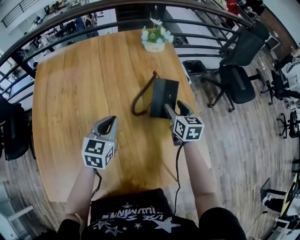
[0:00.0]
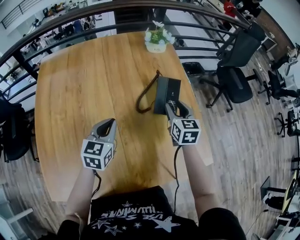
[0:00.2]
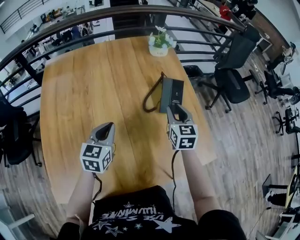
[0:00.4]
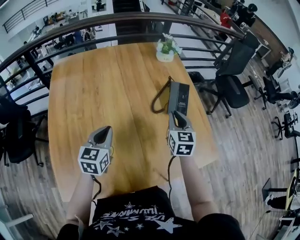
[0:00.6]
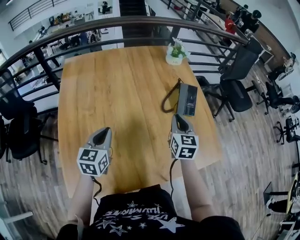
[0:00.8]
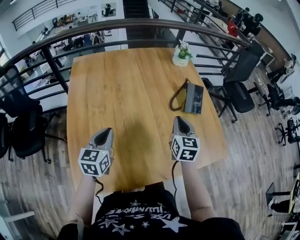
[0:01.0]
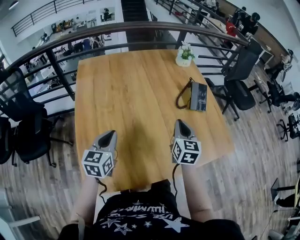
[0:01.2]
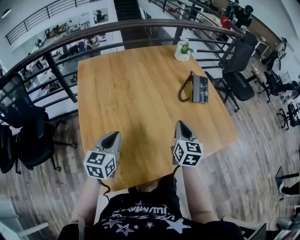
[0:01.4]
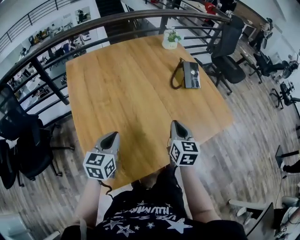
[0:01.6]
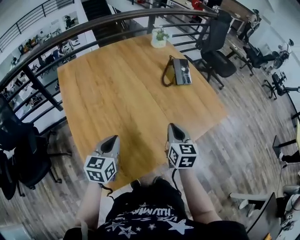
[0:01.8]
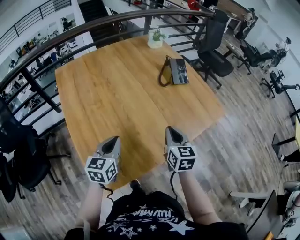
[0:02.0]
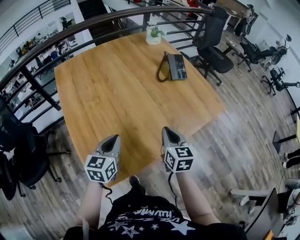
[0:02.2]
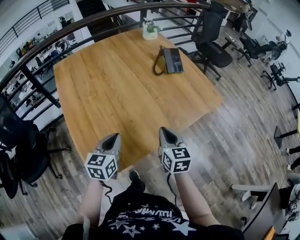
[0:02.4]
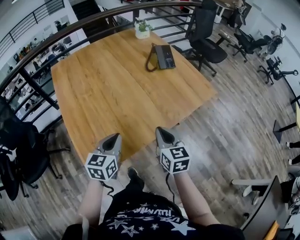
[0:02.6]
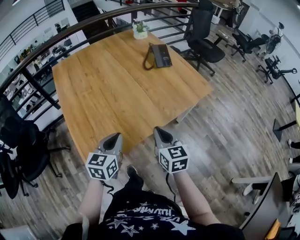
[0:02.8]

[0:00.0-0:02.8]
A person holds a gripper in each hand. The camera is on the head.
0:00.0 to 0:01.4: The left gripper heads to the left and backward, covering approximately 35 cm, while the right gripper moves backward and to the left, about 35 cm, and closes.
0:01.4 to 0:02.8: The left gripper shifts some 20 cm to the right and backward, while the right gripper heads backward, covering roughly 20 cm.

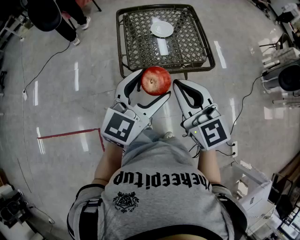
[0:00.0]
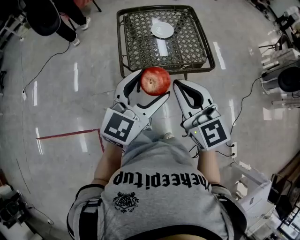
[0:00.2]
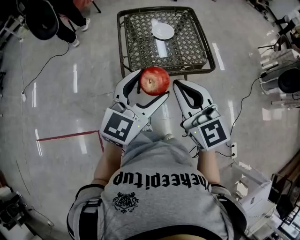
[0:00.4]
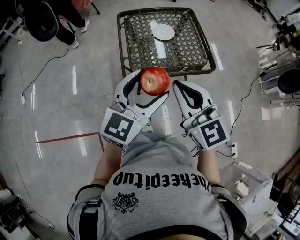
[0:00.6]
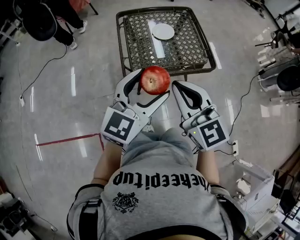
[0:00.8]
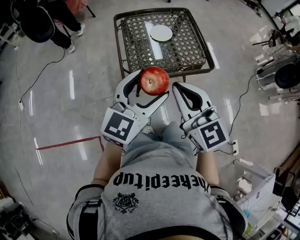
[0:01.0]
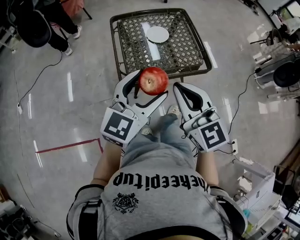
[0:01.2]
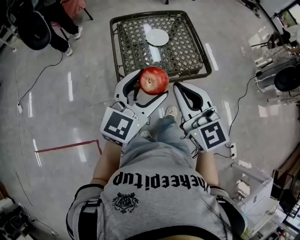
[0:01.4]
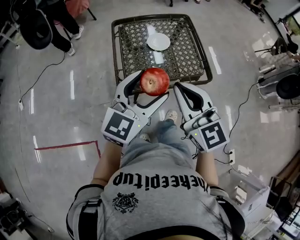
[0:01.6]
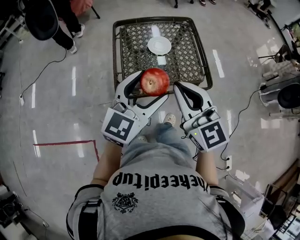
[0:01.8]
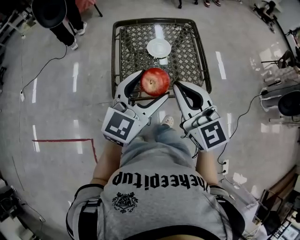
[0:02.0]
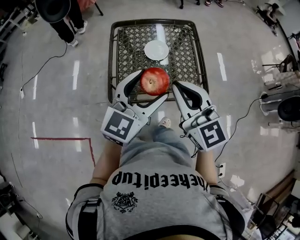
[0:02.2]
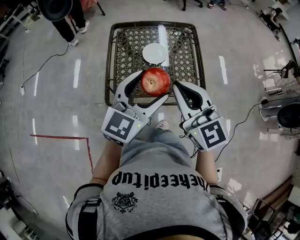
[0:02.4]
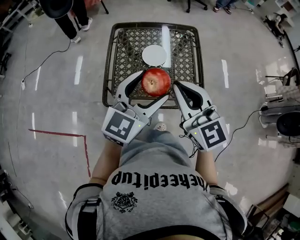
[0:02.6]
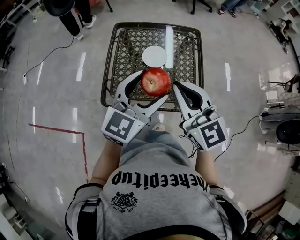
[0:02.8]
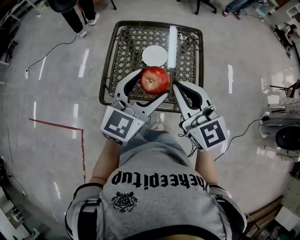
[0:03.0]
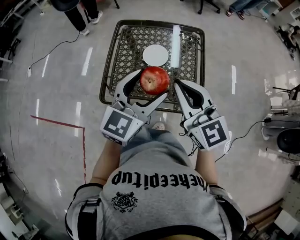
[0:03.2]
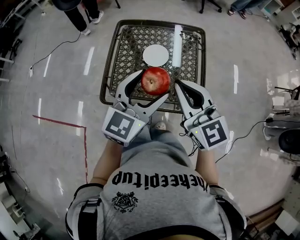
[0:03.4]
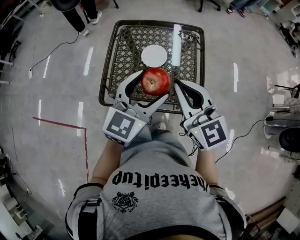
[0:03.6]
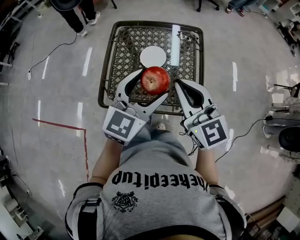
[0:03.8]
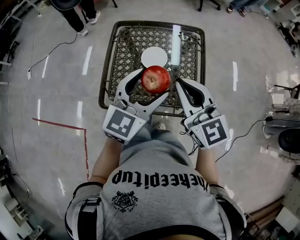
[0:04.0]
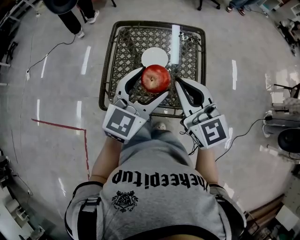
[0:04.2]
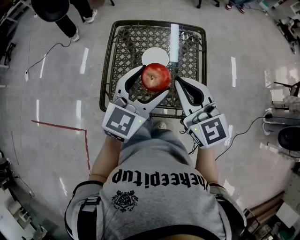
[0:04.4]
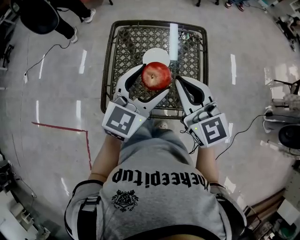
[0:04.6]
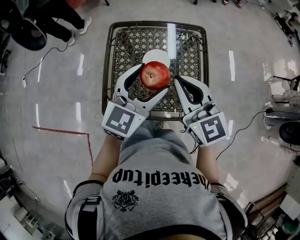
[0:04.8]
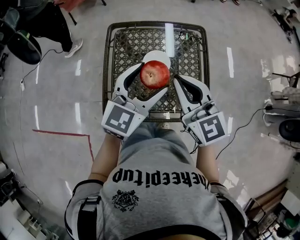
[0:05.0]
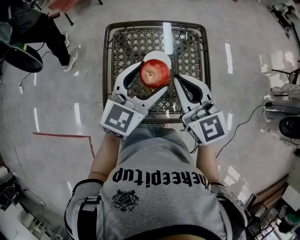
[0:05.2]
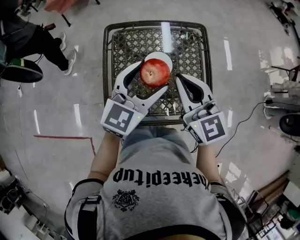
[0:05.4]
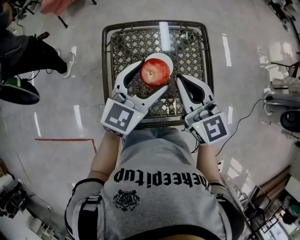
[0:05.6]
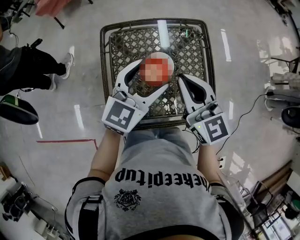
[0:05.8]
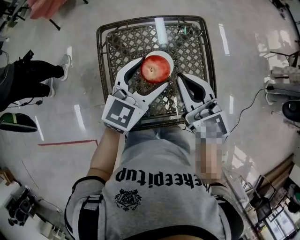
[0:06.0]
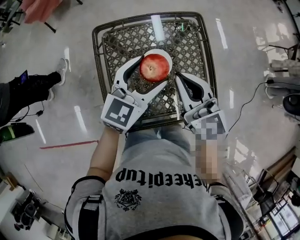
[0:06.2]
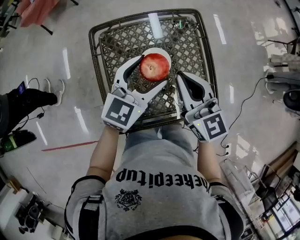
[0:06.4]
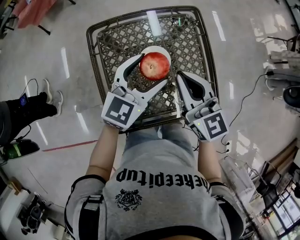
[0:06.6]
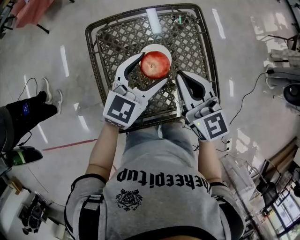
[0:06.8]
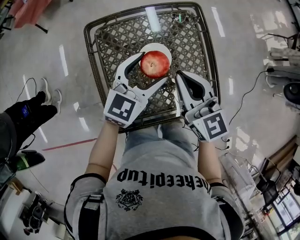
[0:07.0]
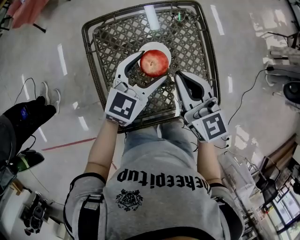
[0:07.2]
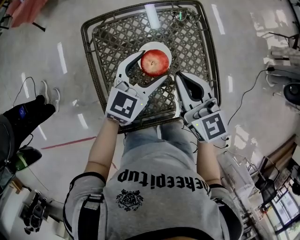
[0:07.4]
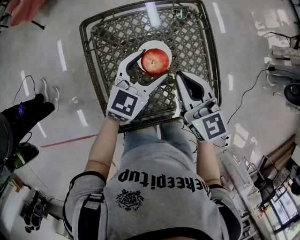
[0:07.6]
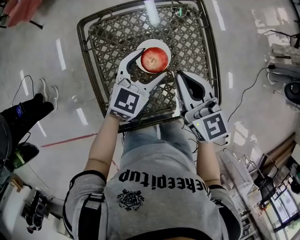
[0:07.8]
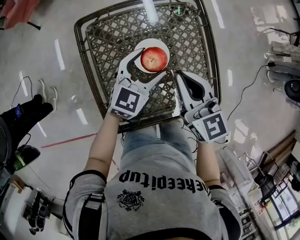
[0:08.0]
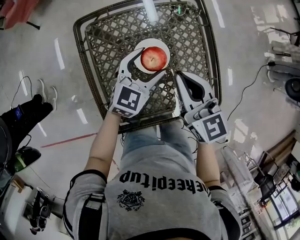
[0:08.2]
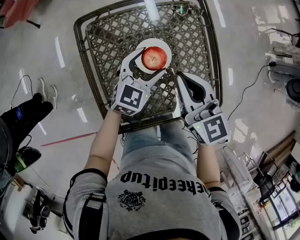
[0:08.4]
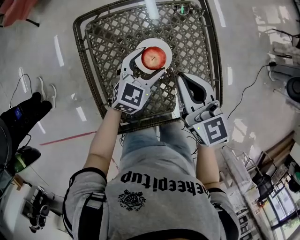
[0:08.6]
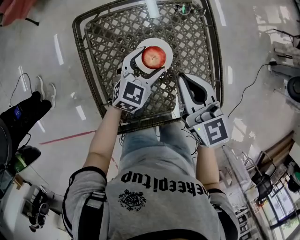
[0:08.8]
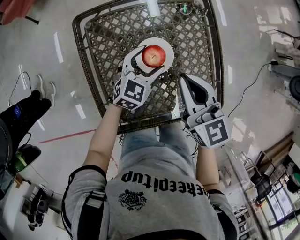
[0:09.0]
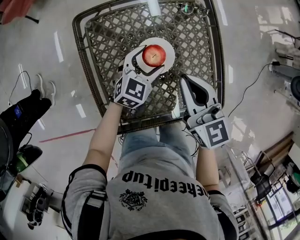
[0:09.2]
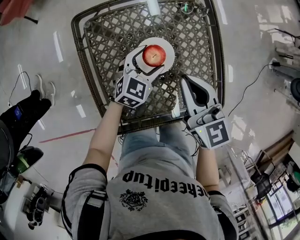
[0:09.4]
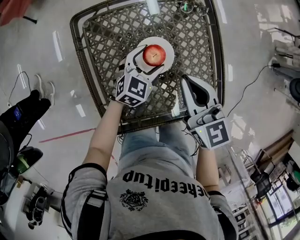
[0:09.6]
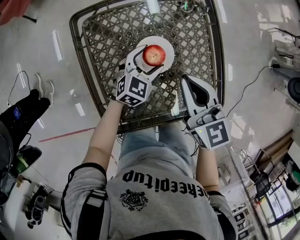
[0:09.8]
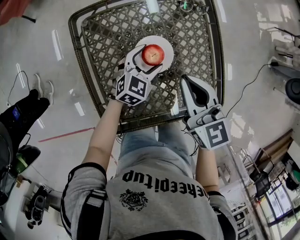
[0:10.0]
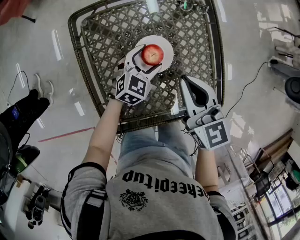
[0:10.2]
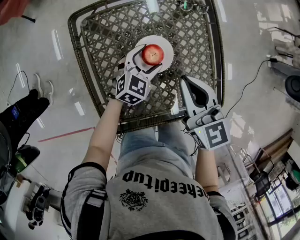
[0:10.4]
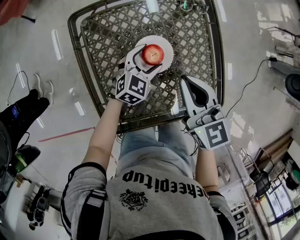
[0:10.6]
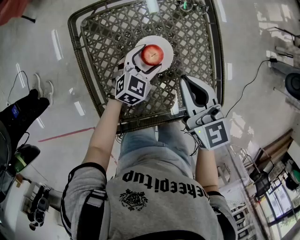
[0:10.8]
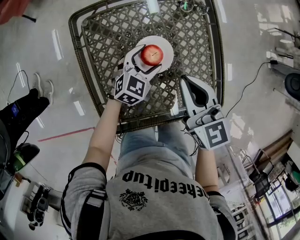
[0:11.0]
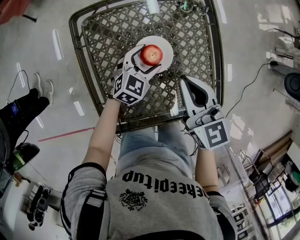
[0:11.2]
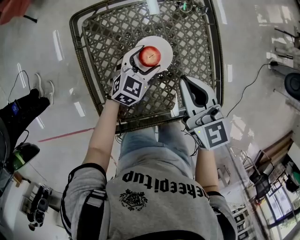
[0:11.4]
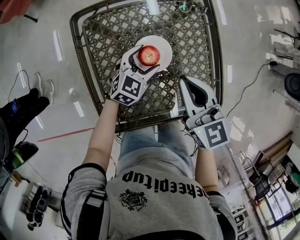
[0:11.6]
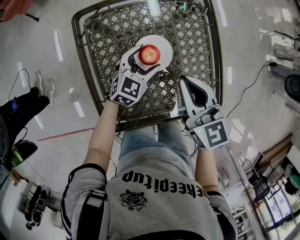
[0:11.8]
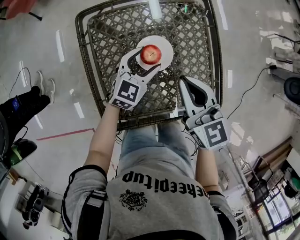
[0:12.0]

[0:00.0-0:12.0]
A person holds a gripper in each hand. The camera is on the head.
0:00.0 to 0:01.6: The two grippers go approximately 10 cm forward.
0:01.6 to 0:03.0: The two grippers go roughly 20 cm forward and to the right.
0:03.0 to 0:04.4: Both grippers travel together forward, some 5 cm.
0:04.4 to 0:06.0: Both grippers travel together forward and to the left, some 15 cm.
0:06.0 to 0:07.6: The two grippers go about 10 cm downward.
0:07.6 to 0:09.0: The left gripper goes some 10 cm downward.
0:09.0 to 0:10.4: There are only small adjustments of the grippers.
0:10.4 to 0:12.0: The left gripper goes approximately 5 cm upward.

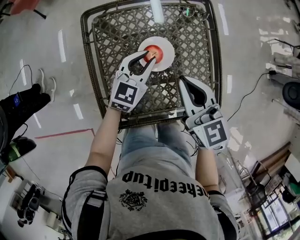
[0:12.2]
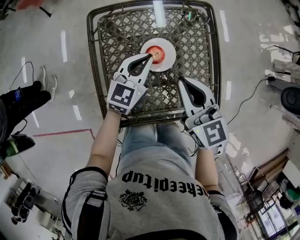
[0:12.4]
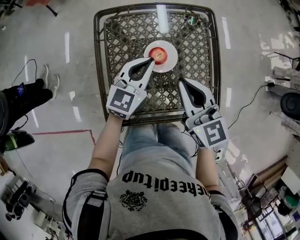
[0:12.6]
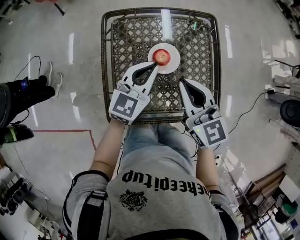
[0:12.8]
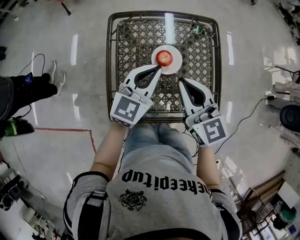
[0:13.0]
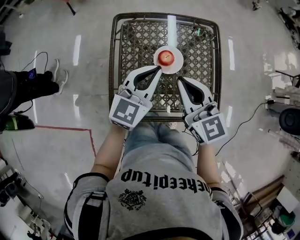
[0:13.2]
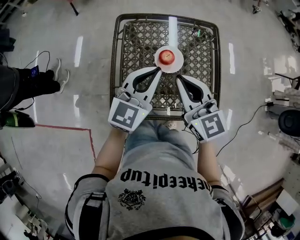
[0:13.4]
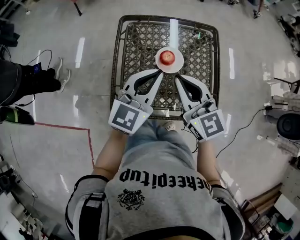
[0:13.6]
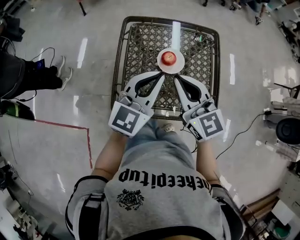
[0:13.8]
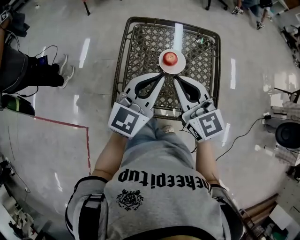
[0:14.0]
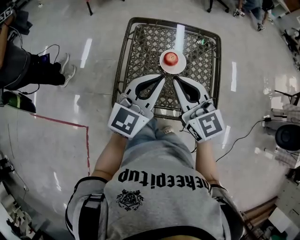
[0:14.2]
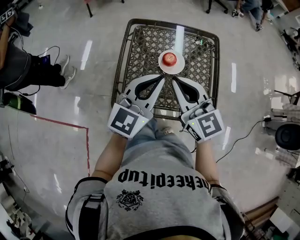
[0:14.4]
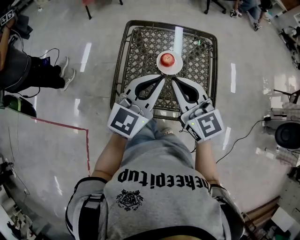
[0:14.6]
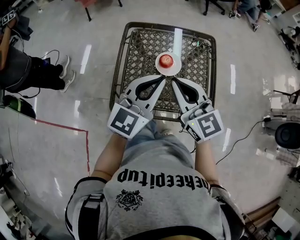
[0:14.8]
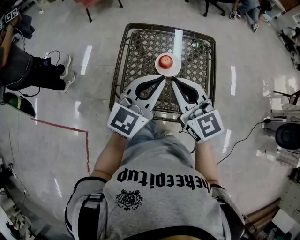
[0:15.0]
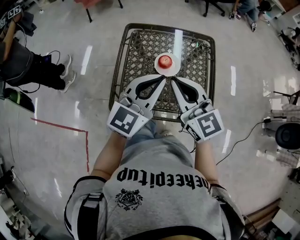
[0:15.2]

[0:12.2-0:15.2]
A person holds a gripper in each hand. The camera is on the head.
0:12.2 to 0:13.8: The left gripper travels upward and backward by roughly 25 cm, while the right gripper moves upward, to the left and backward, some 10 cm, and swivels approximately 20 degrees.
0:13.8 to 0:15.2: The grippers both shift backward by about 5 cm.

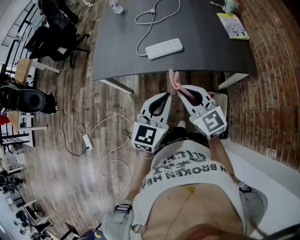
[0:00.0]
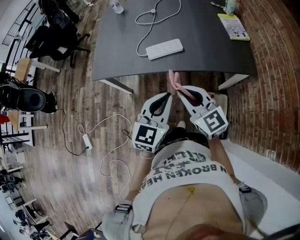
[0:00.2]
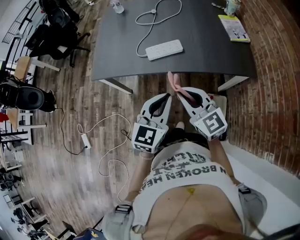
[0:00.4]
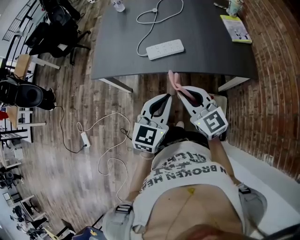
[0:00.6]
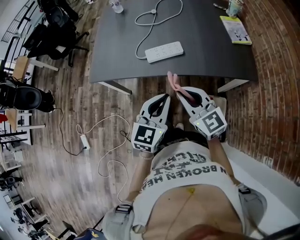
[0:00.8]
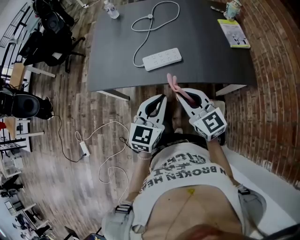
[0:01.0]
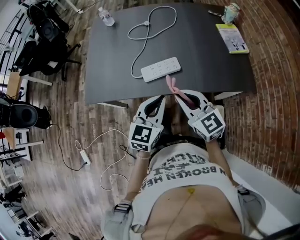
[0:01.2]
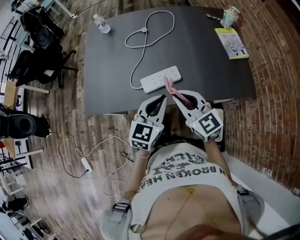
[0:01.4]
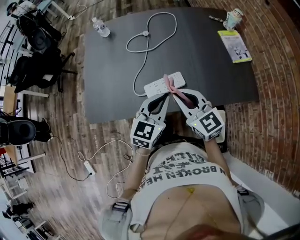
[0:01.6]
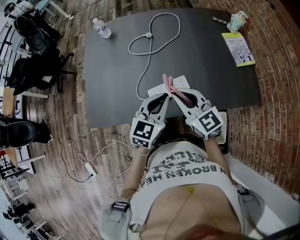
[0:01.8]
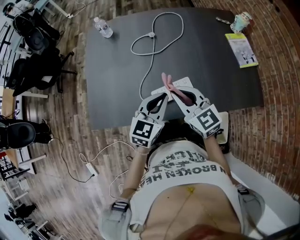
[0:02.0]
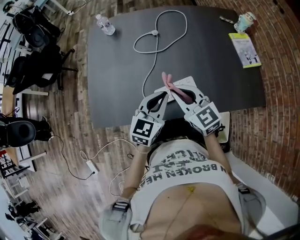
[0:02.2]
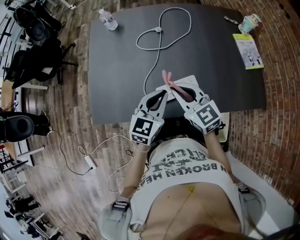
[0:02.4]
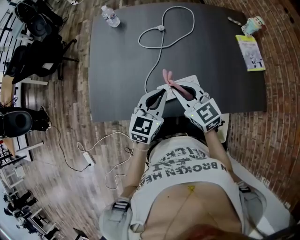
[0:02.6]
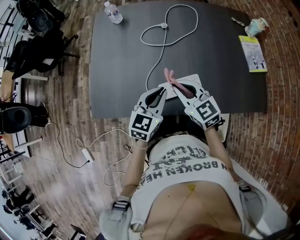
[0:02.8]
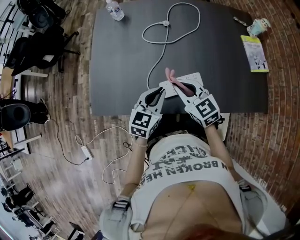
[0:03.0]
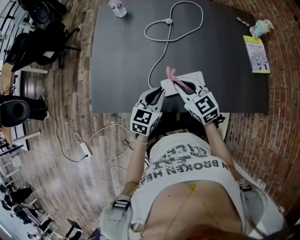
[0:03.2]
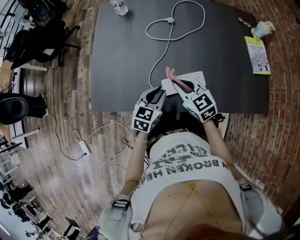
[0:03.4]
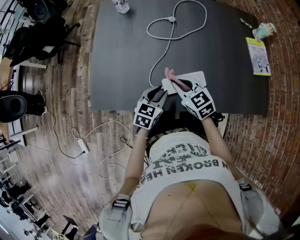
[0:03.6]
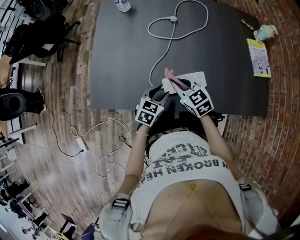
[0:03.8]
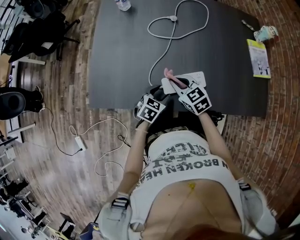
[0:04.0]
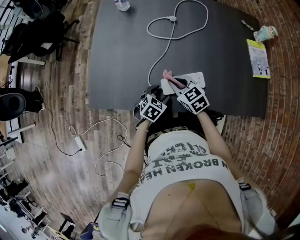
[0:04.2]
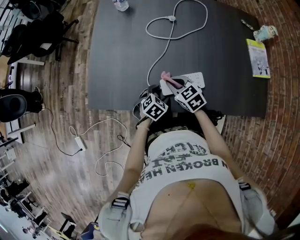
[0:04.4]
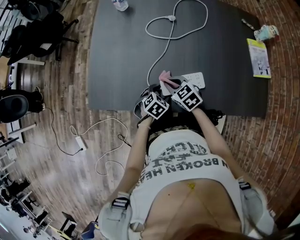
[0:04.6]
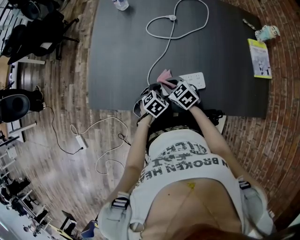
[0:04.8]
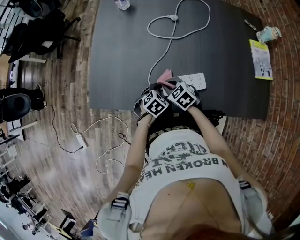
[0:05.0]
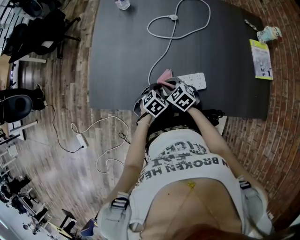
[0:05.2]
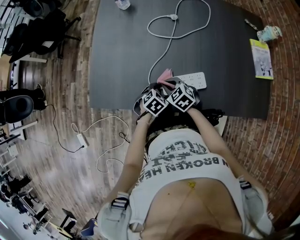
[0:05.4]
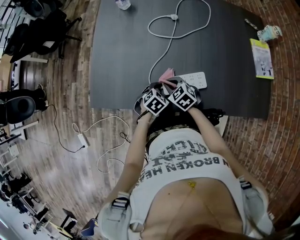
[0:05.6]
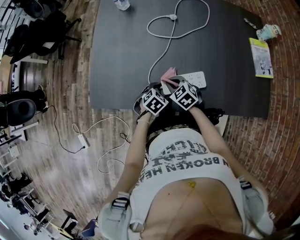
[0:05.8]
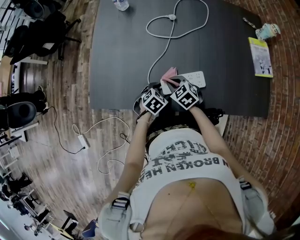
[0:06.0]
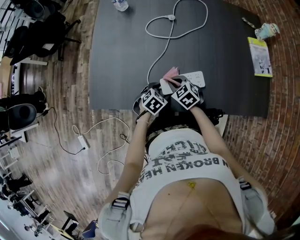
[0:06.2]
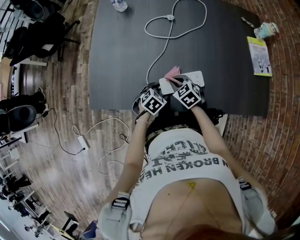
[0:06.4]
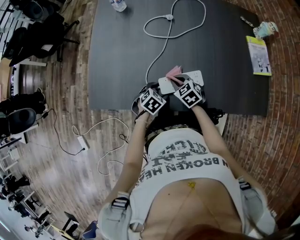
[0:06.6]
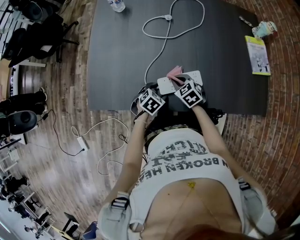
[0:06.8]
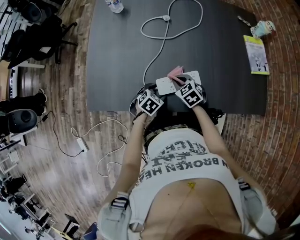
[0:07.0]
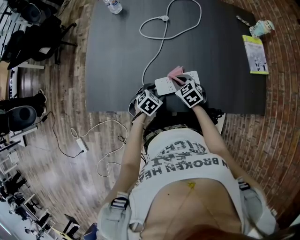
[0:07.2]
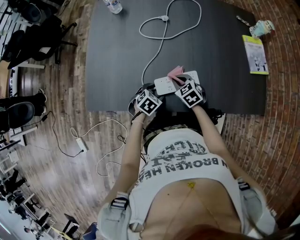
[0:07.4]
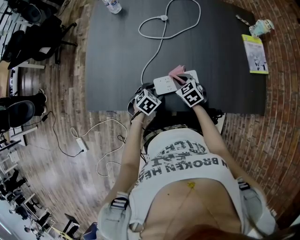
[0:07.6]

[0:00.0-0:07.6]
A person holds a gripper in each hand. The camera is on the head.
0:00.0 to 0:01.6: Both grippers travel together forward, approximately 25 cm.
0:01.6 to 0:03.0: The right gripper moves forward, downward and to the left, about 15 cm; the left gripper is displaced to the left, downward and forward by roughly 15 cm.
0:03.0 to 0:04.6: Both grippers move downward, some 15 cm. The left gripper tilts its fingers some 40 degrees downward, and opens. The right gripper changes its angle by approximately 20 degrees.
0:04.6 to 0:06.0: The grippers stay close to where they were, moving slightly.
0:06.0 to 0:07.6: The right gripper shifts roughly 5 cm to the right.
